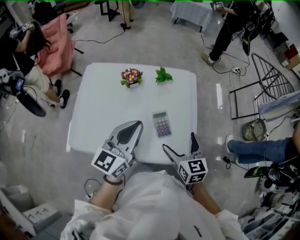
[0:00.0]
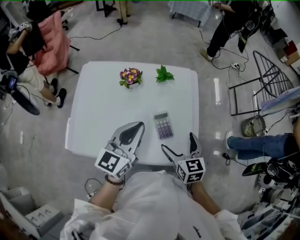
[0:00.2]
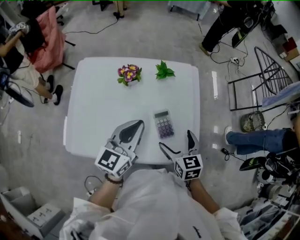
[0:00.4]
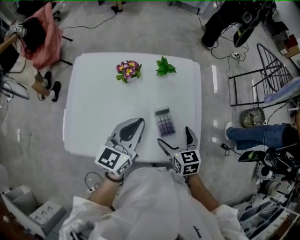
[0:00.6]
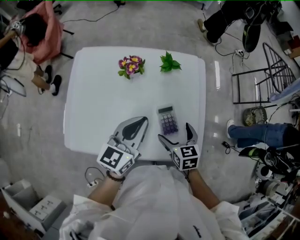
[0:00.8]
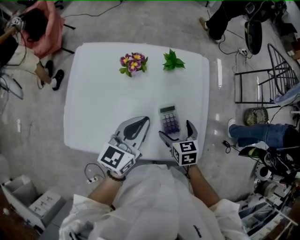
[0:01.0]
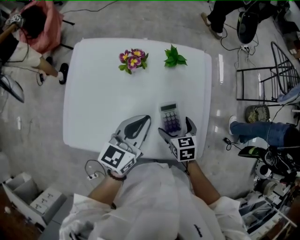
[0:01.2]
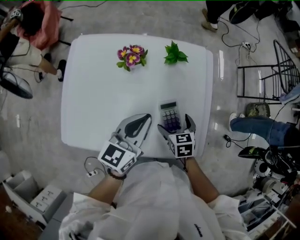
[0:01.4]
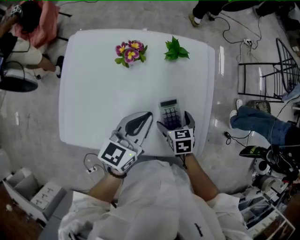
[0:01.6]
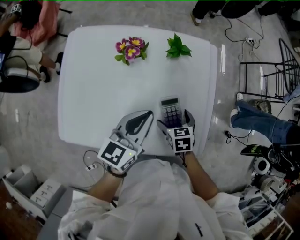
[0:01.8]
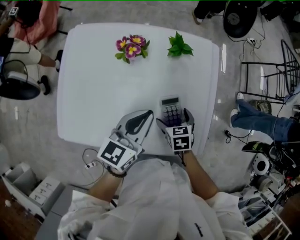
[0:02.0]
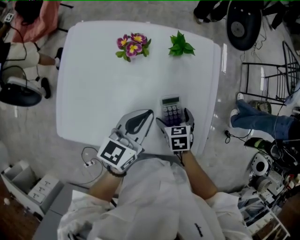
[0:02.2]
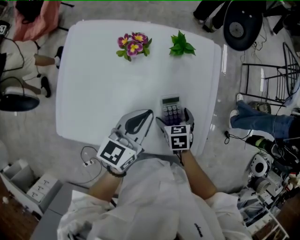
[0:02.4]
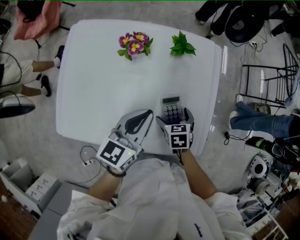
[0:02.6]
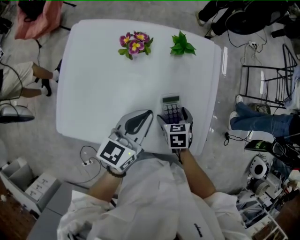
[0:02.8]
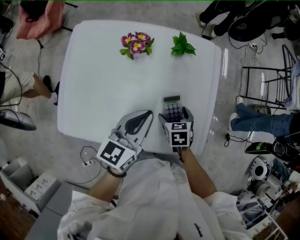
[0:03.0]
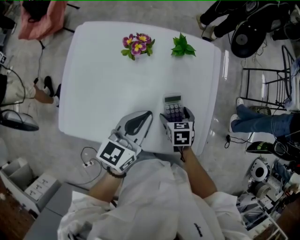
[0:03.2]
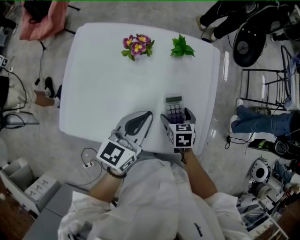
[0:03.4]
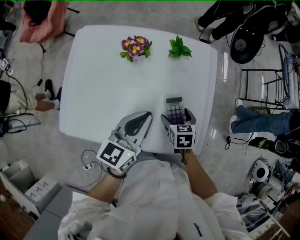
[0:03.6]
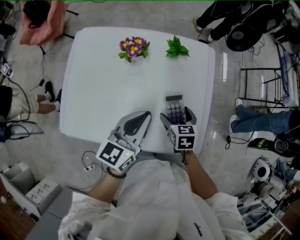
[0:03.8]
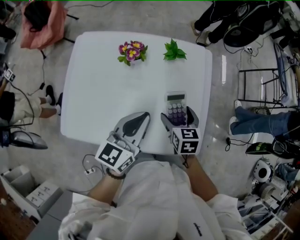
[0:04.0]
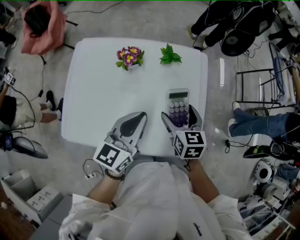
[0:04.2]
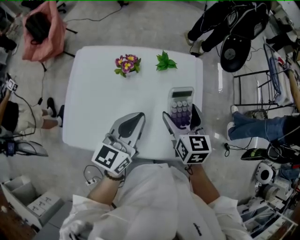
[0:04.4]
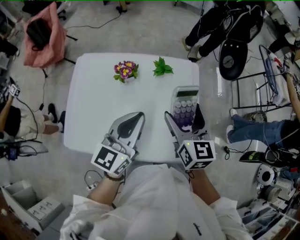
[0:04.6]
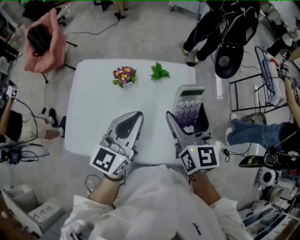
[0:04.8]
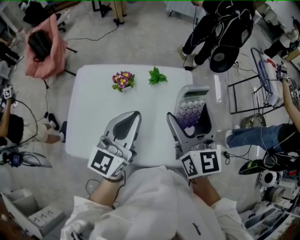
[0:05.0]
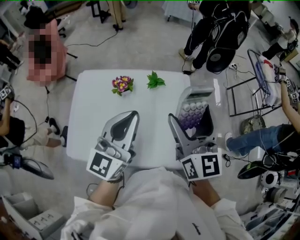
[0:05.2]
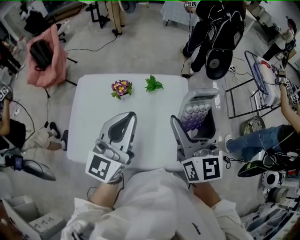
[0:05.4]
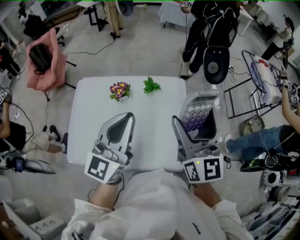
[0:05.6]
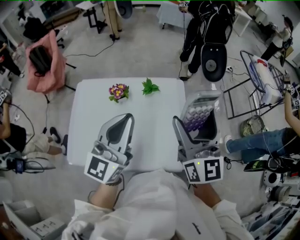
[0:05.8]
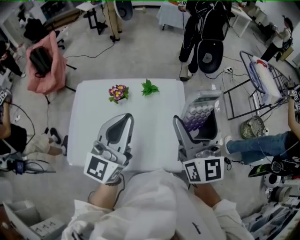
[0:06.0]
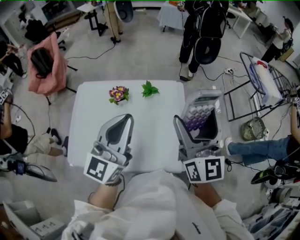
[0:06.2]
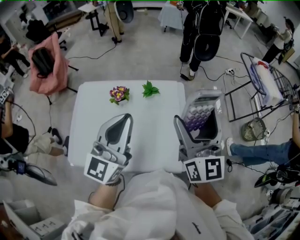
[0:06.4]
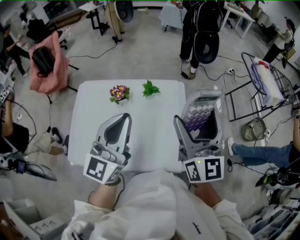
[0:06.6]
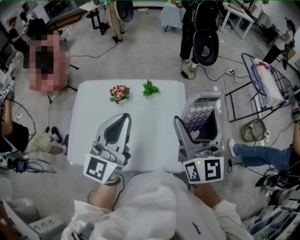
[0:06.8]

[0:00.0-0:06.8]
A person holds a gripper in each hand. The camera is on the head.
0:00.0 to 0:01.4: Both grippers move downward and forward, approximately 15 cm. The right gripper rotates about 30 degrees.
0:01.4 to 0:02.8: The grippers move only a little.
0:02.8 to 0:04.0: The right gripper heads upward, covering about 10 cm.
0:04.0 to 0:05.4: The right gripper travels upward by about 35 cm, and angles its fingers upward, by about 50 degrees; the left gripper is displaced upward by approximately 20 cm, and changes its angle by about 30 degrees.
0:05.4 to 0:06.8: The grippers move only a little.

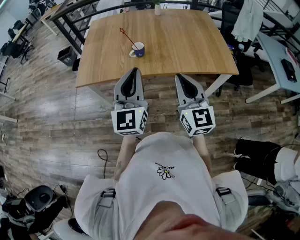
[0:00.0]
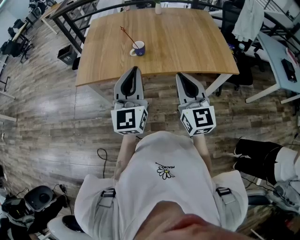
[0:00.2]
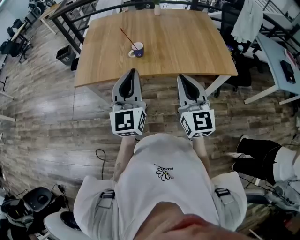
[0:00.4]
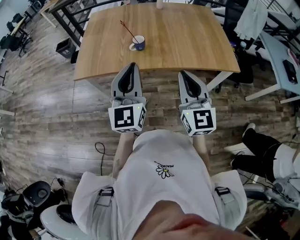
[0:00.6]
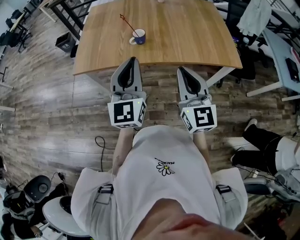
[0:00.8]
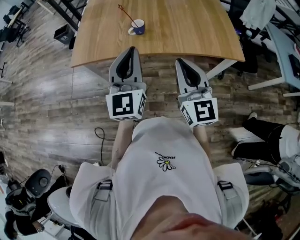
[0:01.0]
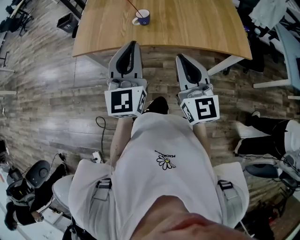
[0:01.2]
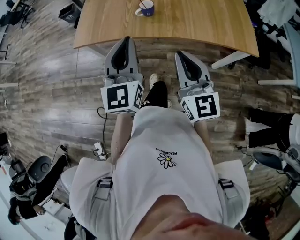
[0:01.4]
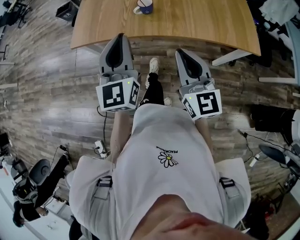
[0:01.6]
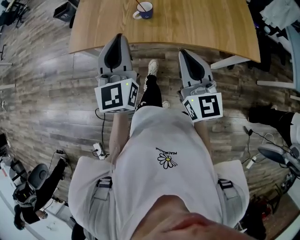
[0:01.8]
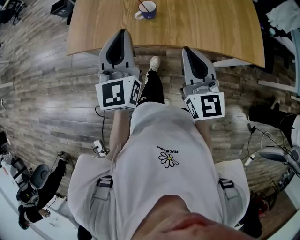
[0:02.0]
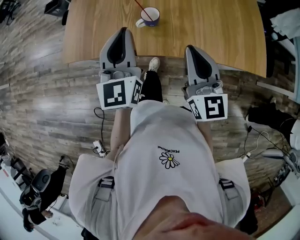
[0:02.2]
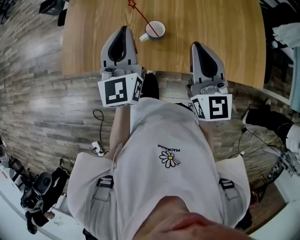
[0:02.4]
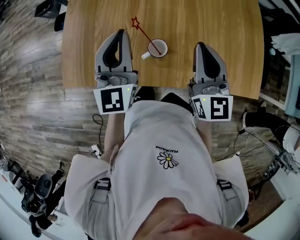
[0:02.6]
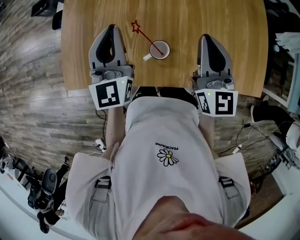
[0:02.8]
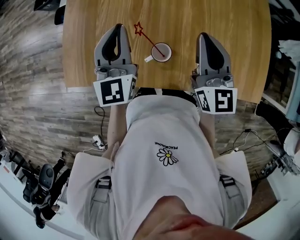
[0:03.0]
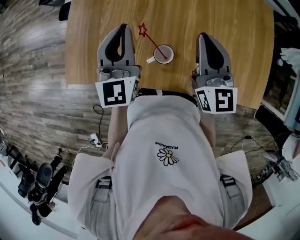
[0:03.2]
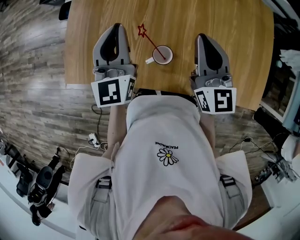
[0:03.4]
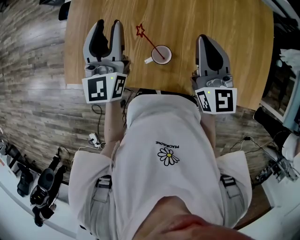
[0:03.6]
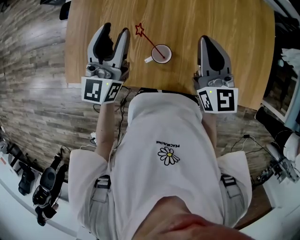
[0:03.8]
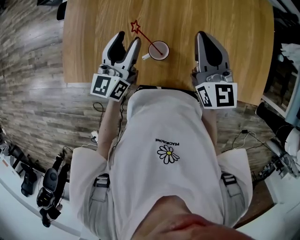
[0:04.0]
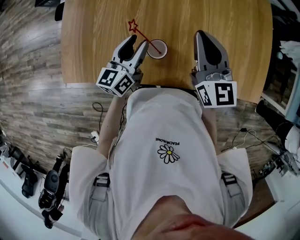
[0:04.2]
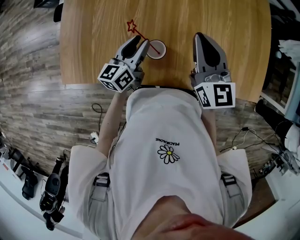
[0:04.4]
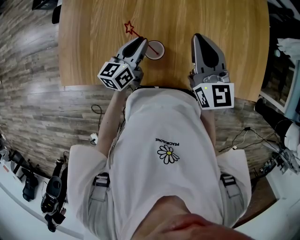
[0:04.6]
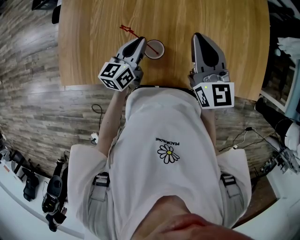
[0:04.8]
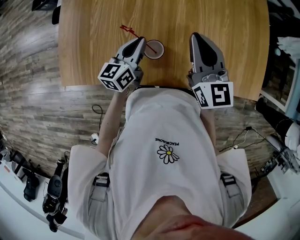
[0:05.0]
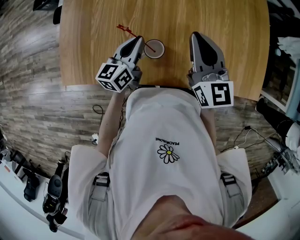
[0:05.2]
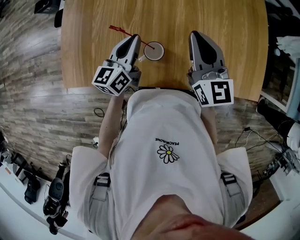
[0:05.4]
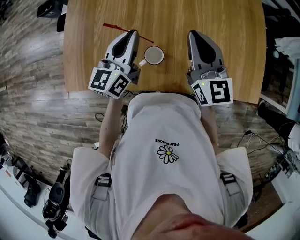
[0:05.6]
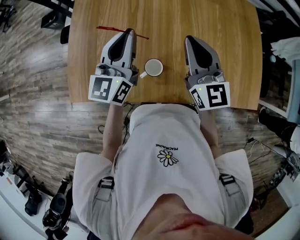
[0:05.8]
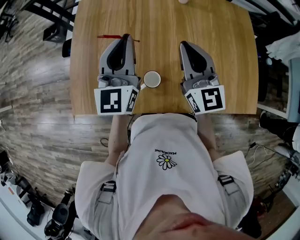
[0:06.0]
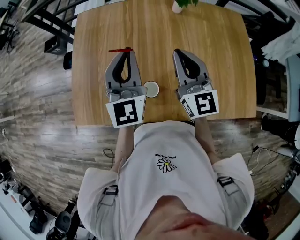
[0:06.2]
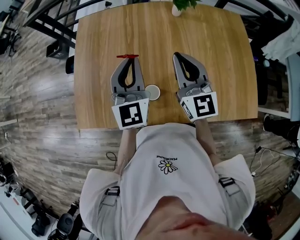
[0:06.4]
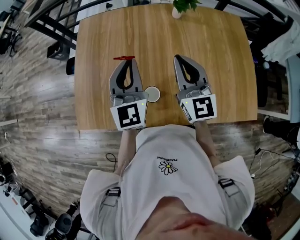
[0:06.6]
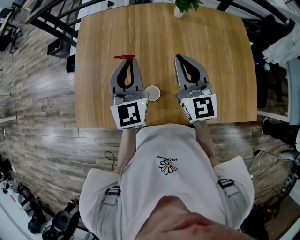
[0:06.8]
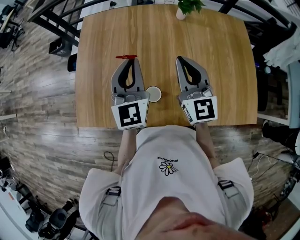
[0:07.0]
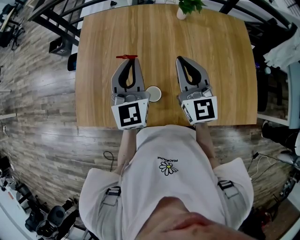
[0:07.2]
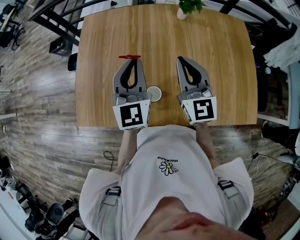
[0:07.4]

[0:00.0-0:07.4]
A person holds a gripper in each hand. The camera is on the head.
0:00.0 to 0:01.4: The left gripper changes place by about 5 cm.
0:01.4 to 0:03.0: The grippers both shift forward by roughly 40 cm.
0:03.0 to 0:04.4: The left gripper goes approximately 15 cm downward and to the right, swivels about 40 degrees, and opens up.
0:04.4 to 0:06.0: The left gripper travels upward by approximately 25 cm, turns by about 40 degrees, and closes its fingers, while the right gripper goes about 5 cm upward.
0:06.0 to 0:07.4: The grippers make only small movements.

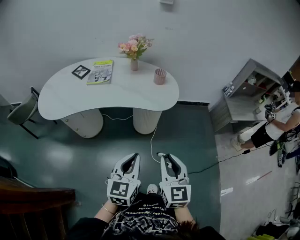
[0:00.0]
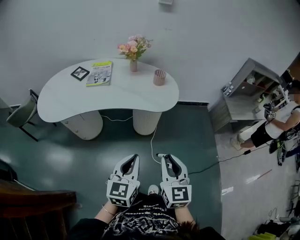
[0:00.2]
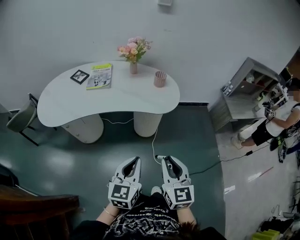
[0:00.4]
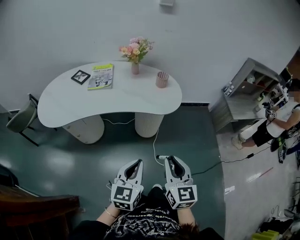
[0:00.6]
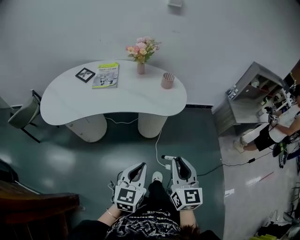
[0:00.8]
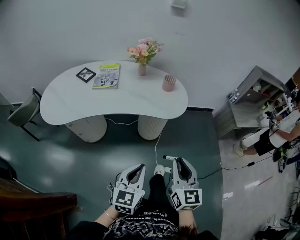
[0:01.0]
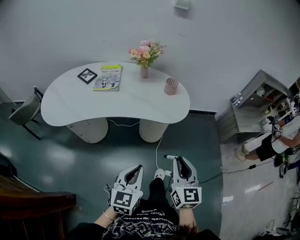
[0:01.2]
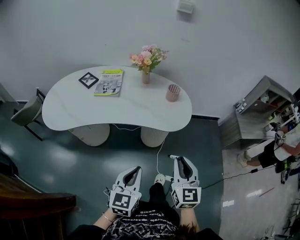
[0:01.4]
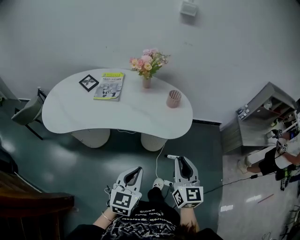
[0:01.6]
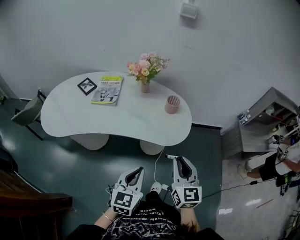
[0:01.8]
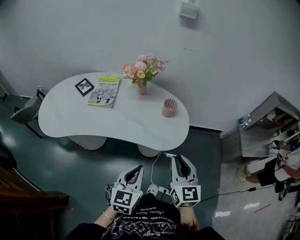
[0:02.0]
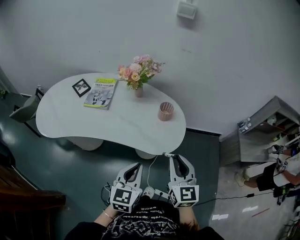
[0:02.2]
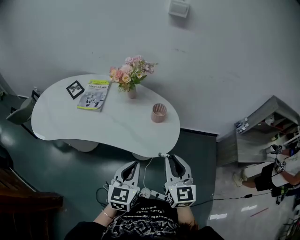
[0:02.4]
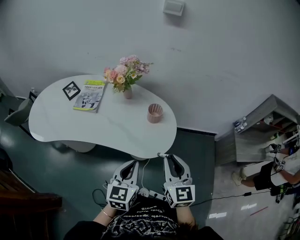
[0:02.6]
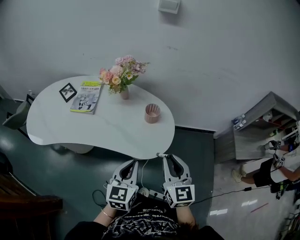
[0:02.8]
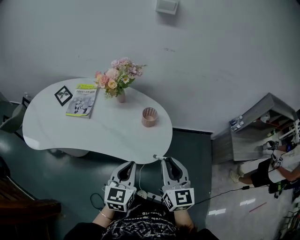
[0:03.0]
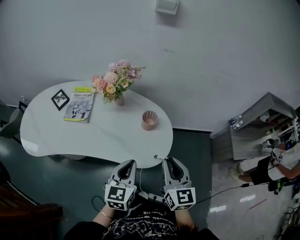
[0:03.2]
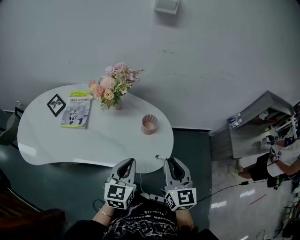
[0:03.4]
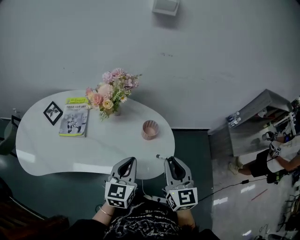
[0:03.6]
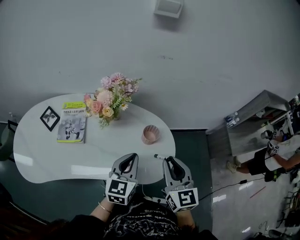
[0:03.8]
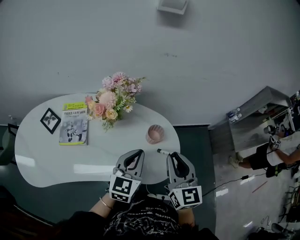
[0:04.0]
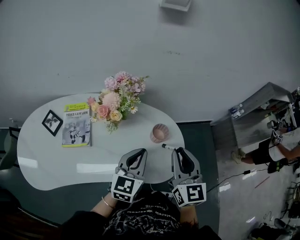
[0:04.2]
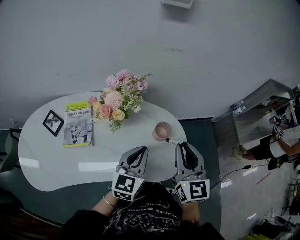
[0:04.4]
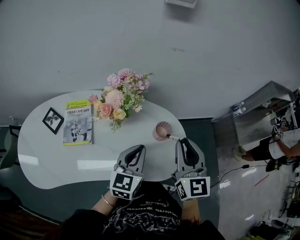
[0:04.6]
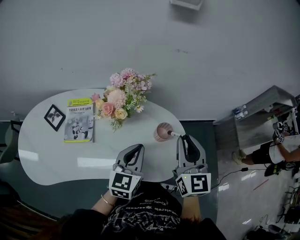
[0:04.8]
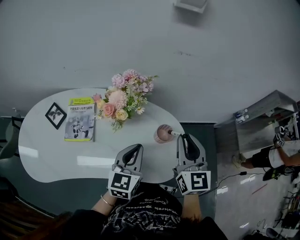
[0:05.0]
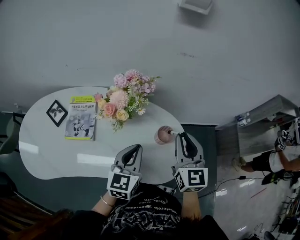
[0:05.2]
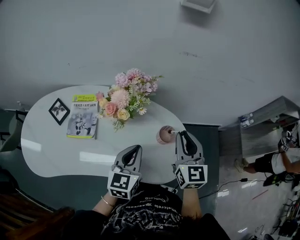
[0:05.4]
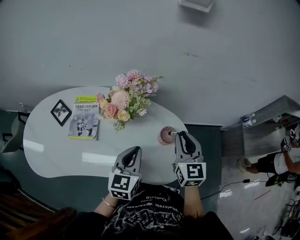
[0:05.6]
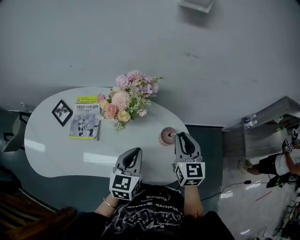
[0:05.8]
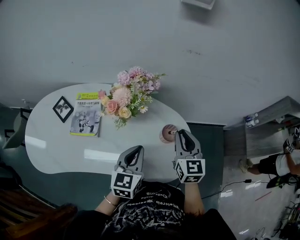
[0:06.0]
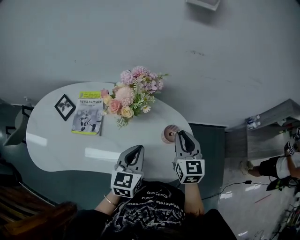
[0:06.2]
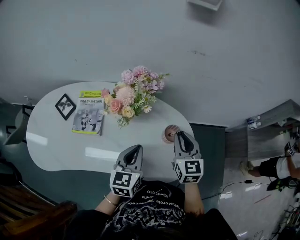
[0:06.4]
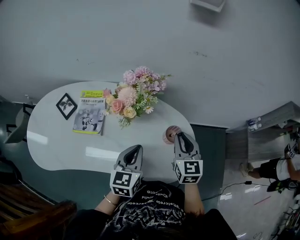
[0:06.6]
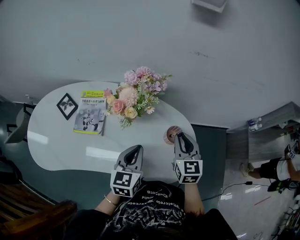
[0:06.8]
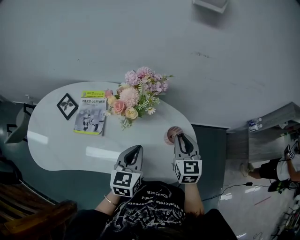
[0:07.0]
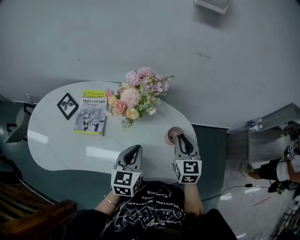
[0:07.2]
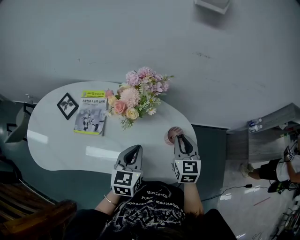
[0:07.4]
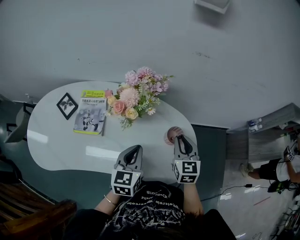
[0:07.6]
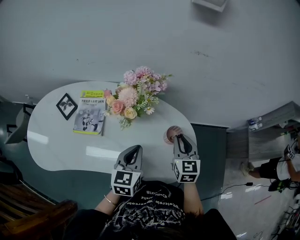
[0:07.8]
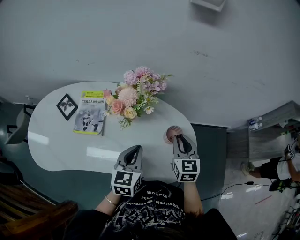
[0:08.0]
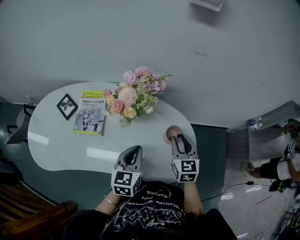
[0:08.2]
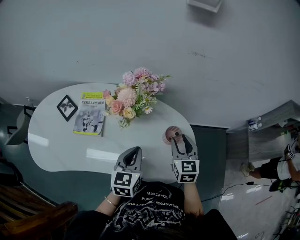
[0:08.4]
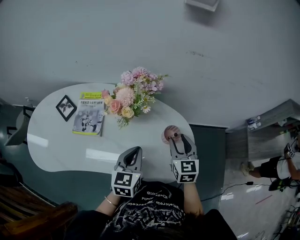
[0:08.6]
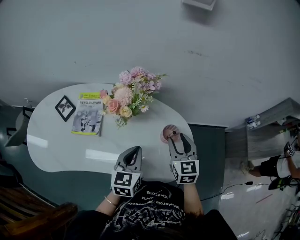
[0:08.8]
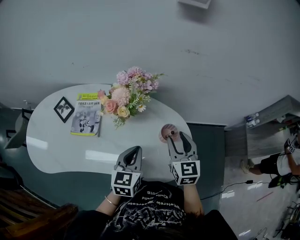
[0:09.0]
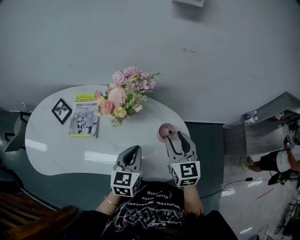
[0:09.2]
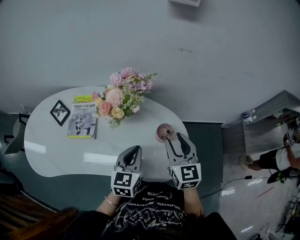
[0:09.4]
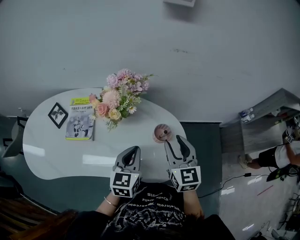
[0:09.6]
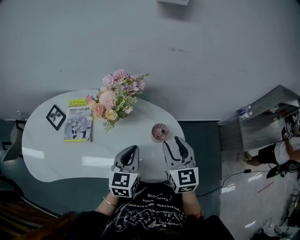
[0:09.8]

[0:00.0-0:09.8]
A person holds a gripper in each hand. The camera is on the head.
0:00.0 to 0:01.4: The left gripper heads forward, covering about 10 cm, while the right gripper goes some 15 cm forward.
0:01.4 to 0:02.8: The grippers both shift forward and to the right by about 25 cm.
0:02.8 to 0:04.2: The right gripper shifts roughly 20 cm forward and to the left, while the left gripper moves forward, about 20 cm, and turns by approximately 20 degrees.
0:04.2 to 0:05.6: The right gripper is displaced forward by roughly 10 cm.
0:05.6 to 0:07.0: The right gripper moves downward, approximately 5 cm.
0:07.0 to 0:08.4: The right gripper opens its fingers.
0:08.4 to 0:09.8: The right gripper goes some 5 cm upward.
